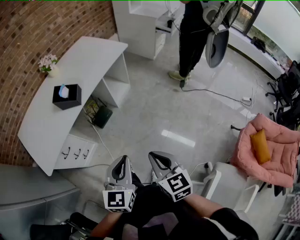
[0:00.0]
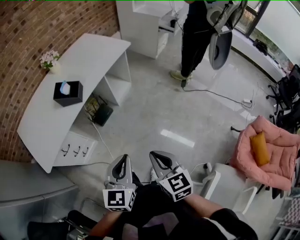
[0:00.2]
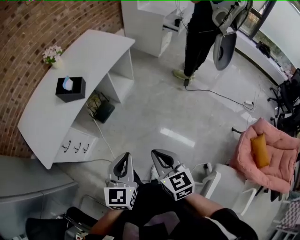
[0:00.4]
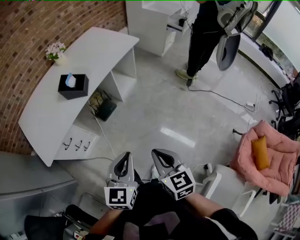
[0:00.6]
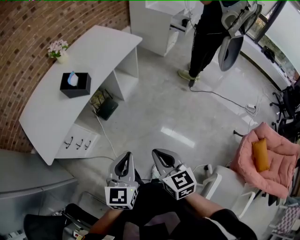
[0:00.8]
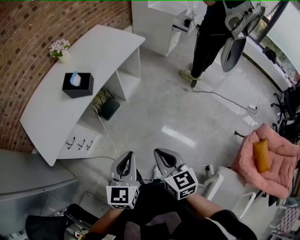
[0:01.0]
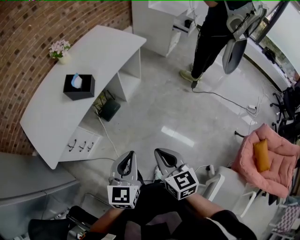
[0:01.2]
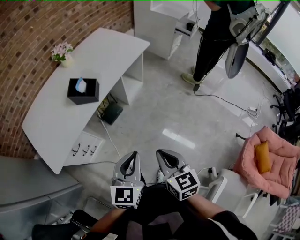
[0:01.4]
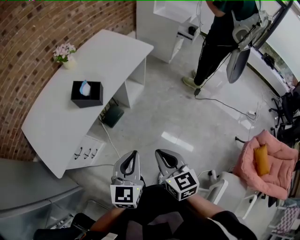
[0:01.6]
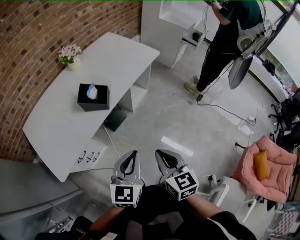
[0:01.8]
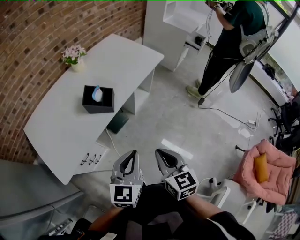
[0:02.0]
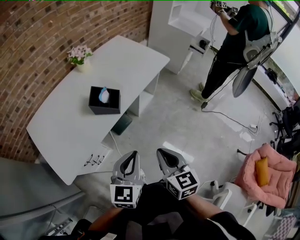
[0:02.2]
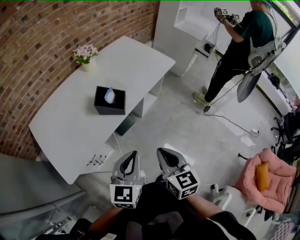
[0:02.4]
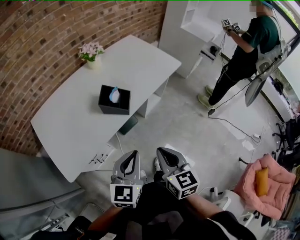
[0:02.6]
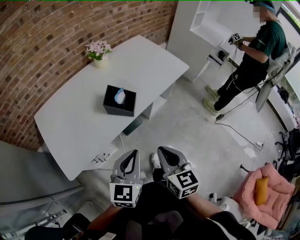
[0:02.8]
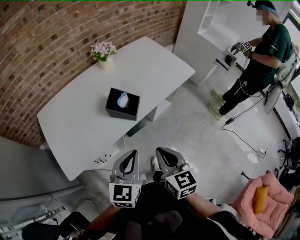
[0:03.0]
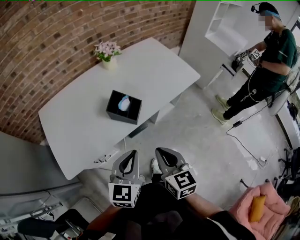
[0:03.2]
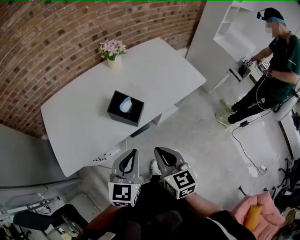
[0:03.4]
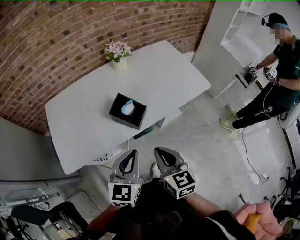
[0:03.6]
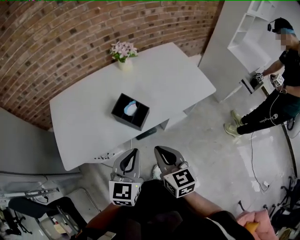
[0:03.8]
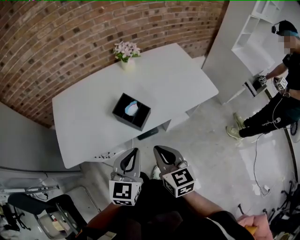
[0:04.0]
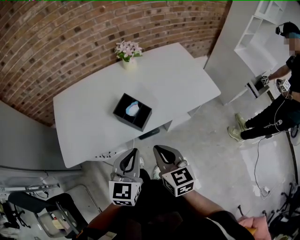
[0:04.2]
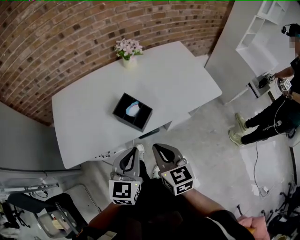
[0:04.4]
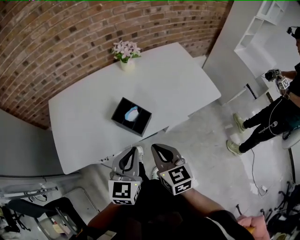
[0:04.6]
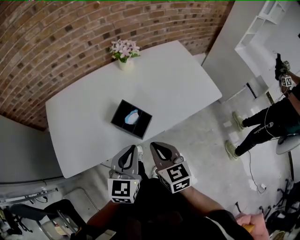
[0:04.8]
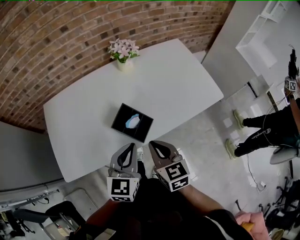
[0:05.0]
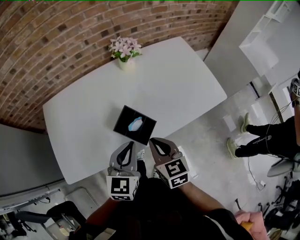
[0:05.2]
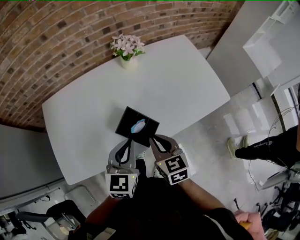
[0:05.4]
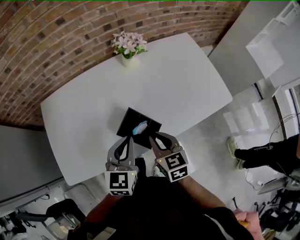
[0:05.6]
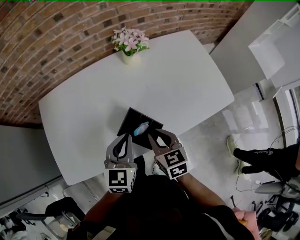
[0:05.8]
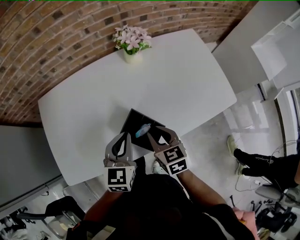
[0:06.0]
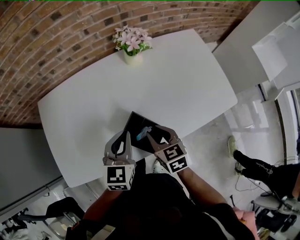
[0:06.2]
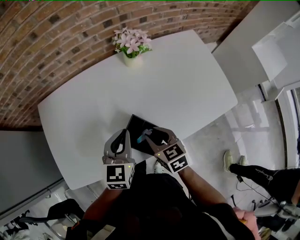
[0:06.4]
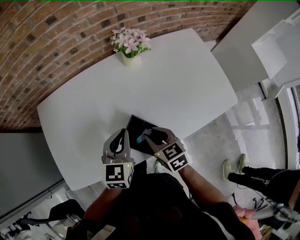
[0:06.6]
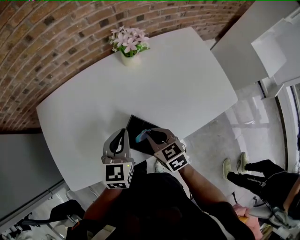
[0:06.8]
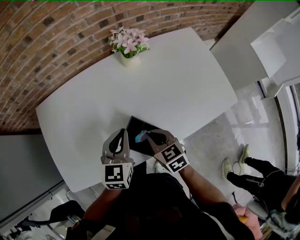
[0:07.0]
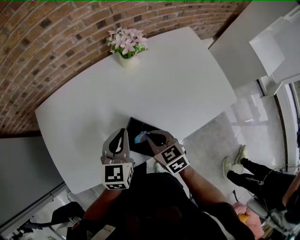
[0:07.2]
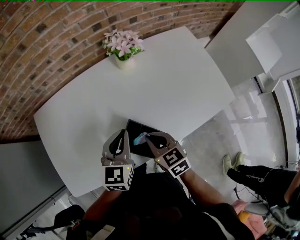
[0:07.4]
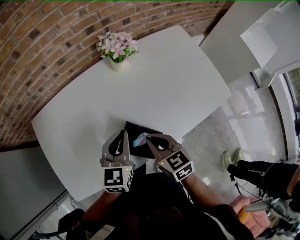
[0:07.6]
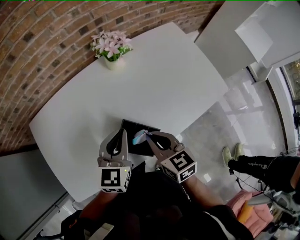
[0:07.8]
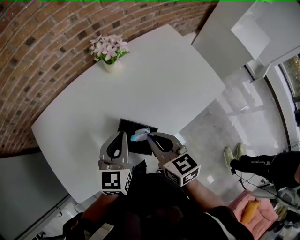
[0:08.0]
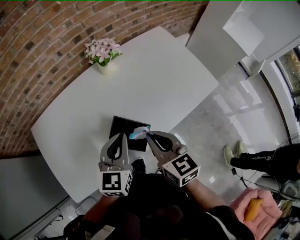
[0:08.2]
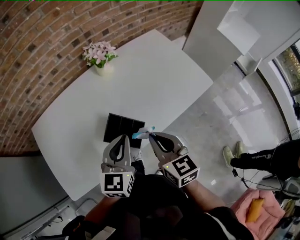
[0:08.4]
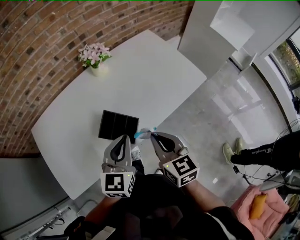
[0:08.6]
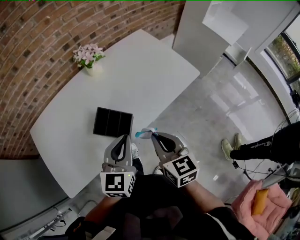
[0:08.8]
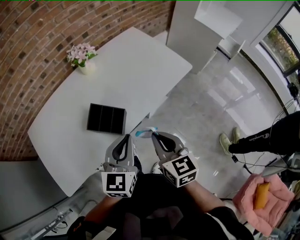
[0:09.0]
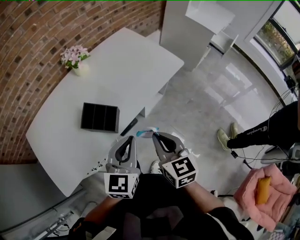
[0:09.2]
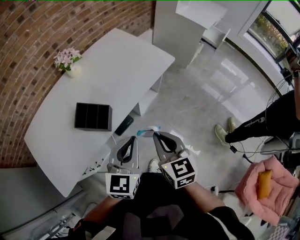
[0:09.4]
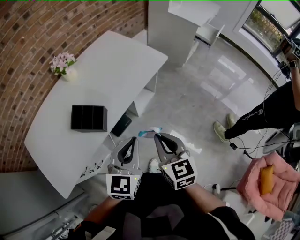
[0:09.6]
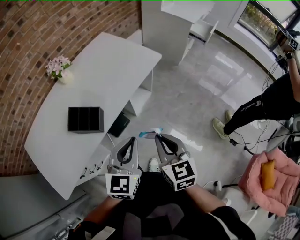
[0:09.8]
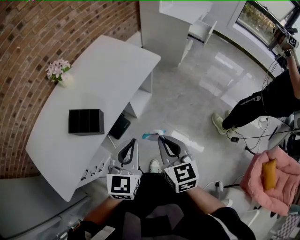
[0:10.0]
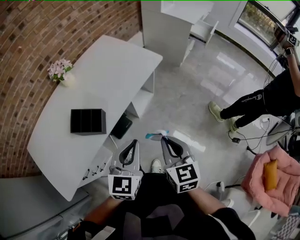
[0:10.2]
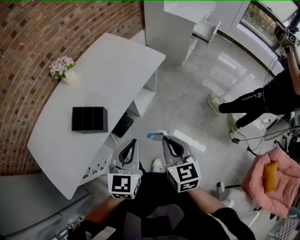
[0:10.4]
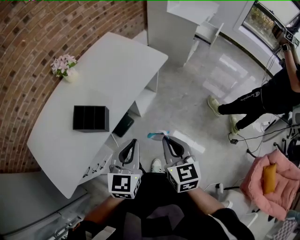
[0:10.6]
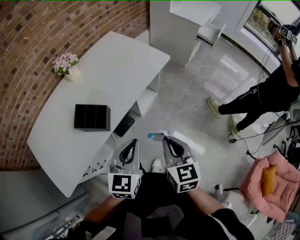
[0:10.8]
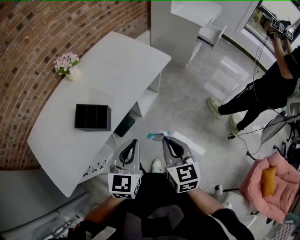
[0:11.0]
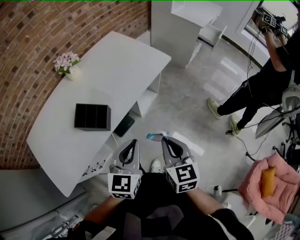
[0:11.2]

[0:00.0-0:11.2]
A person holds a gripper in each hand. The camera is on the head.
0.0 to 1.6 s: Both grippers move to the left and forward, approximately 15 cm.
1.6 to 3.2 s: Both grippers move forward and to the left, approximately 20 cm.
3.2 to 4.8 s: The grippers both shift forward by about 15 cm.
4.8 to 6.4 s: The right gripper goes some 20 cm forward and downward, and opens its fingers. The left gripper travels forward by about 20 cm.
6.4 to 8.0 s: The right gripper travels upward by some 10 cm, and closes up.
8.0 to 9.6 s: The right gripper changes place by some 30 cm, and swivels roughly 30 degrees; the left gripper moves approximately 35 cm, and rotates approximately 20 degrees.
9.6 to 11.2 s: The grippers move only a little.

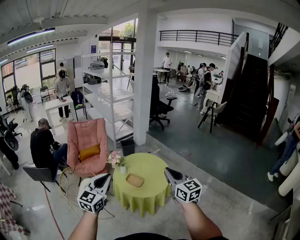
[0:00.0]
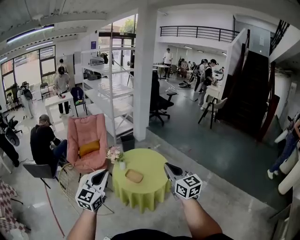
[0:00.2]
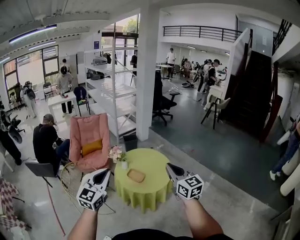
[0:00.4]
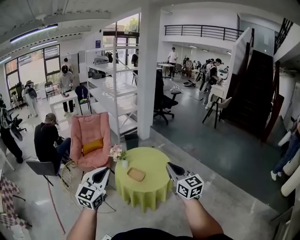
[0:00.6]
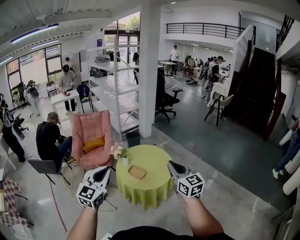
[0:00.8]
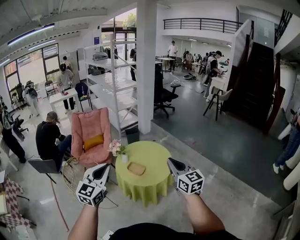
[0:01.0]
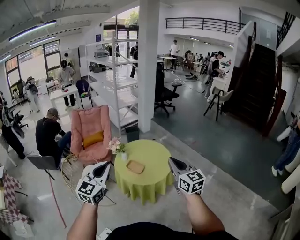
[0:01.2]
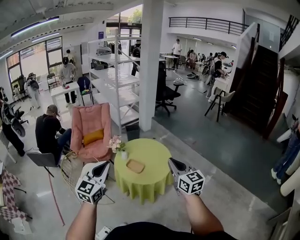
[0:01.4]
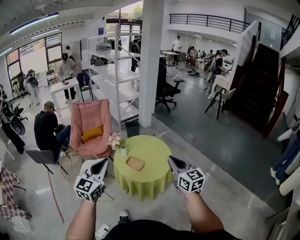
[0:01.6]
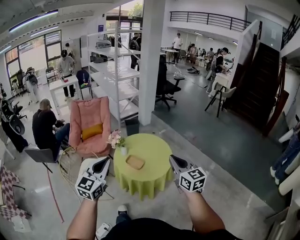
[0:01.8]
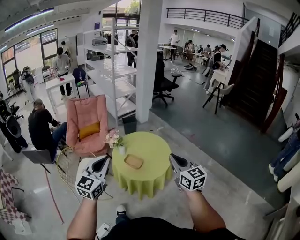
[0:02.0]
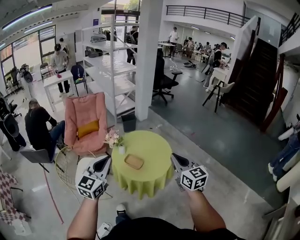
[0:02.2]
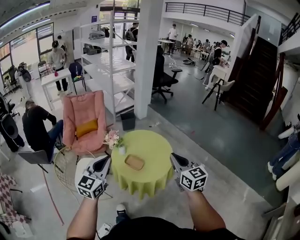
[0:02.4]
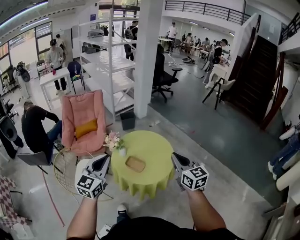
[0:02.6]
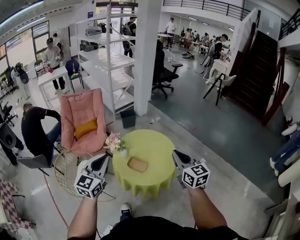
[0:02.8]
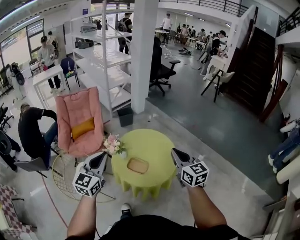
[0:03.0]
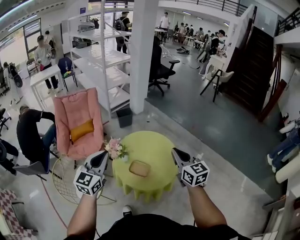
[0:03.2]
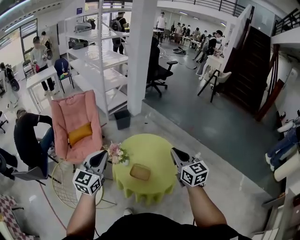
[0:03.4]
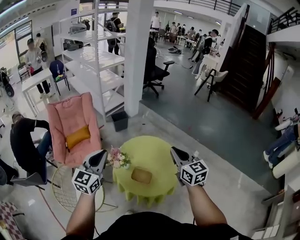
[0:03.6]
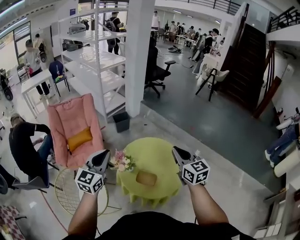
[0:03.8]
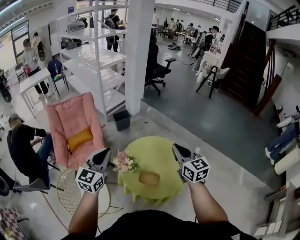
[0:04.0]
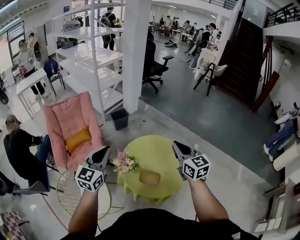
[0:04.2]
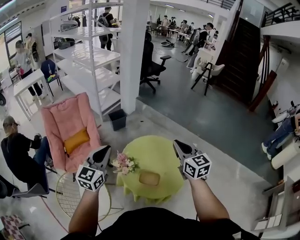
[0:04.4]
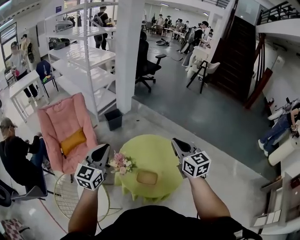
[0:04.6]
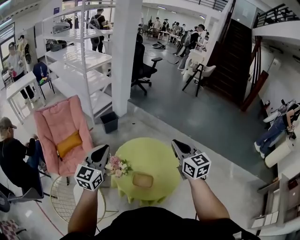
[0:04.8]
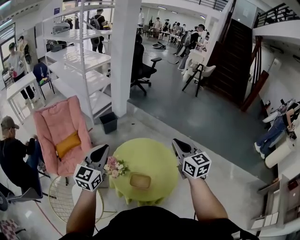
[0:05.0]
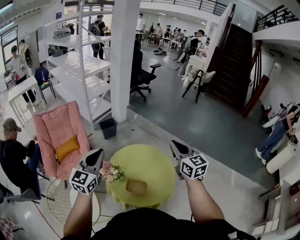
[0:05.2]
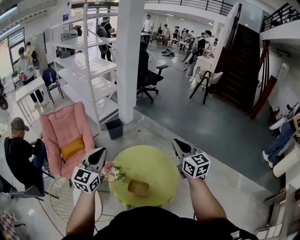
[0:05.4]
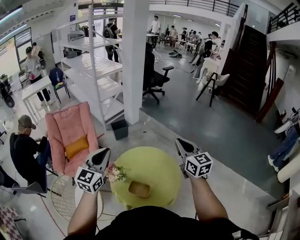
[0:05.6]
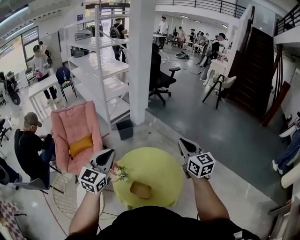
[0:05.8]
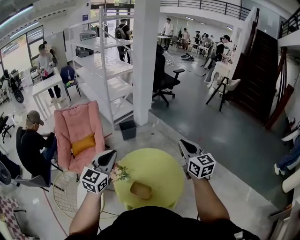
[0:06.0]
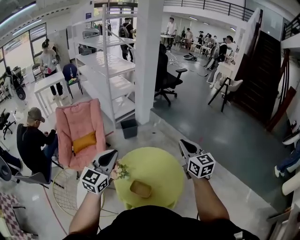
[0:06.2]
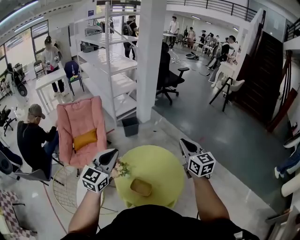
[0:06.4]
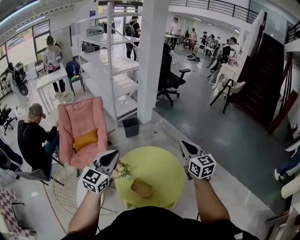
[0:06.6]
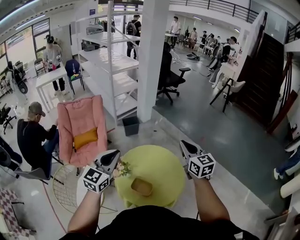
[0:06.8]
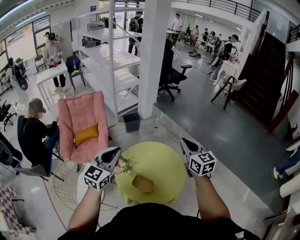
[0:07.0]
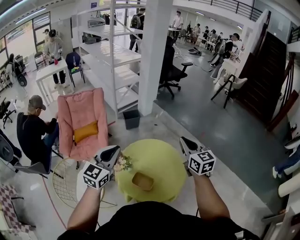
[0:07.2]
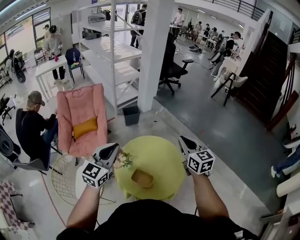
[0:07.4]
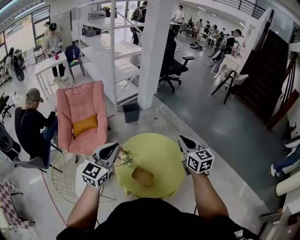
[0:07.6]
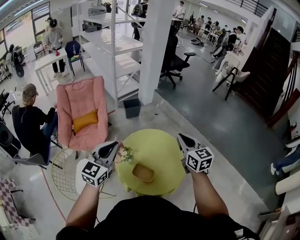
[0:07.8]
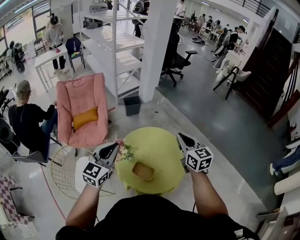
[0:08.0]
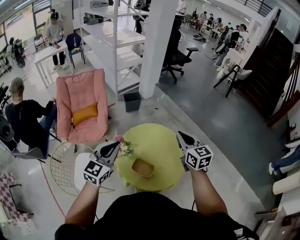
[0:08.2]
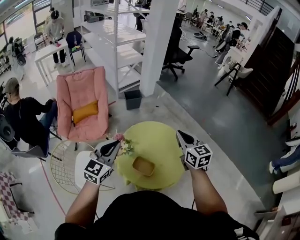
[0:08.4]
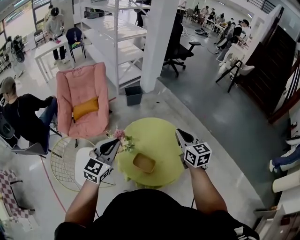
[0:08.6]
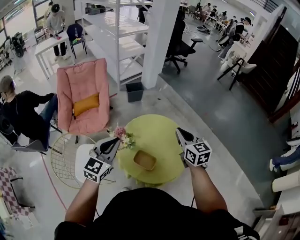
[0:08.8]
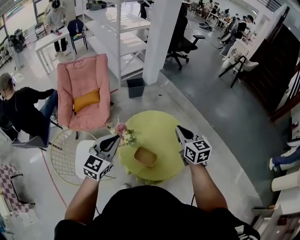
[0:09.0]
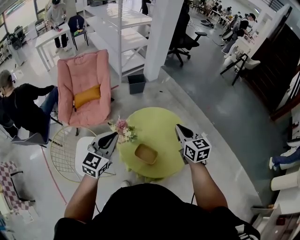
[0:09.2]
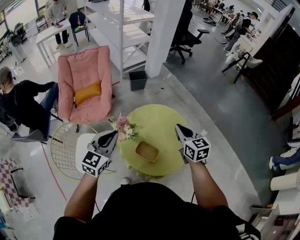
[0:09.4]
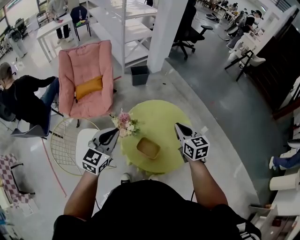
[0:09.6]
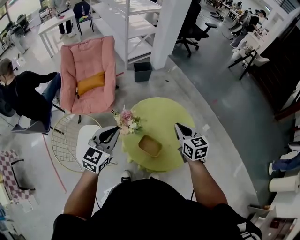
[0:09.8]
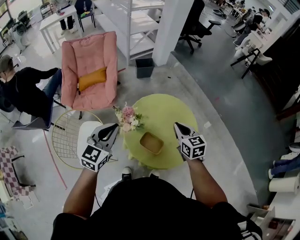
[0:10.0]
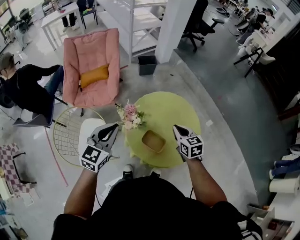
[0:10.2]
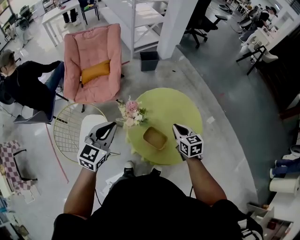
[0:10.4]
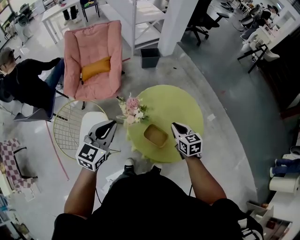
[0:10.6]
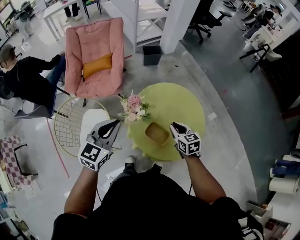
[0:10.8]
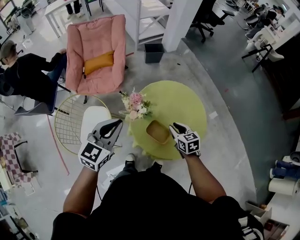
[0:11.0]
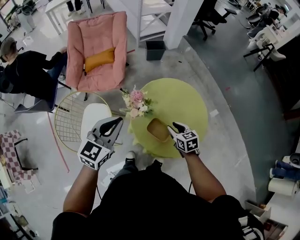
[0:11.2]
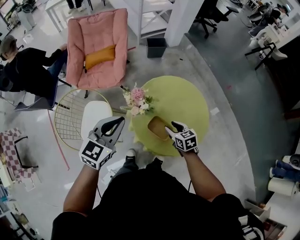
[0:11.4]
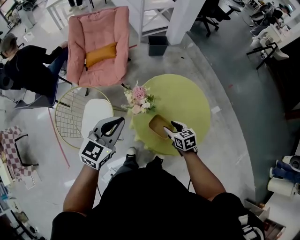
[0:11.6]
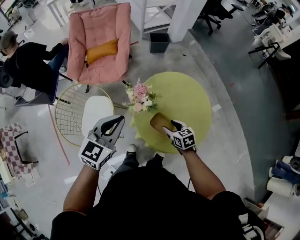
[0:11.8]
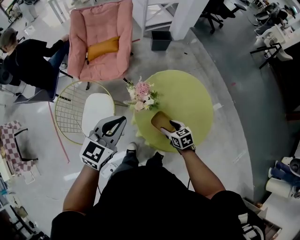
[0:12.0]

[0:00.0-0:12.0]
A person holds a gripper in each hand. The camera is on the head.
0.0 to 1.6 s: The right gripper shifts roughly 5 cm to the right.
1.6 to 3.0 s: The grippers both shift forward by some 20 cm.
3.0 to 4.4 s: The grippers both shift forward and to the left by roughly 20 cm.
4.4 to 6.0 s: The left gripper moves to the right, roughly 10 cm. The right gripper travels to the right and forward by approximately 15 cm.
6.0 to 7.6 s: The left gripper changes place by roughly 5 cm, while the right gripper heads downward, covering roughly 5 cm.
7.6 to 9.0 s: Both grippers travel together downward, approximately 5 cm.
9.0 to 10.4 s: The left gripper moves downward and to the left, about 10 cm, while the right gripper moves downward, about 15 cm.
10.4 to 12.0 s: The right gripper travels downward and to the left by roughly 15 cm, rotates roughly 20 degrees, and opens up.

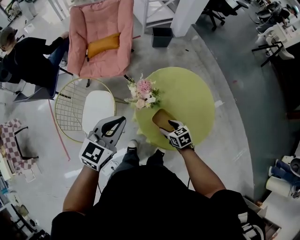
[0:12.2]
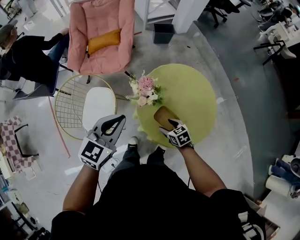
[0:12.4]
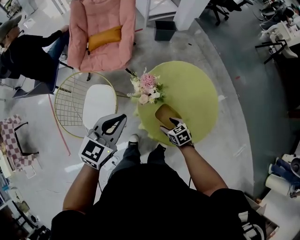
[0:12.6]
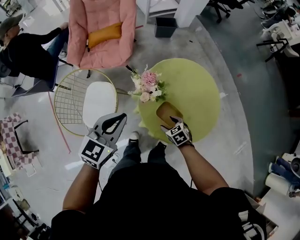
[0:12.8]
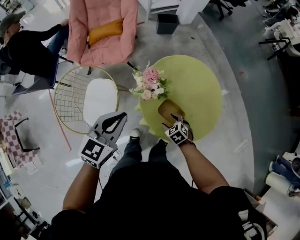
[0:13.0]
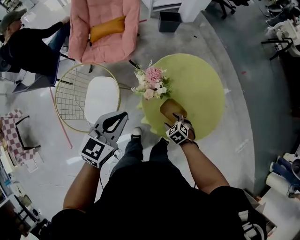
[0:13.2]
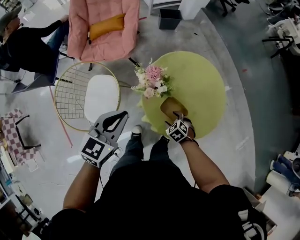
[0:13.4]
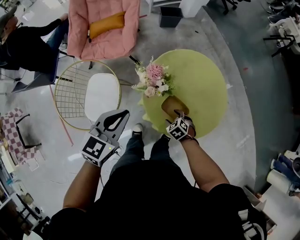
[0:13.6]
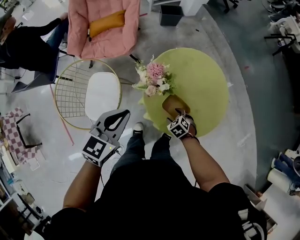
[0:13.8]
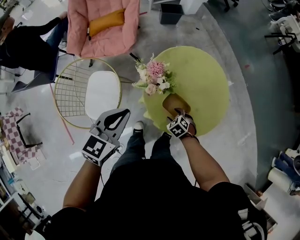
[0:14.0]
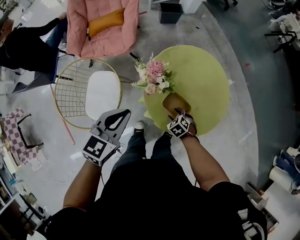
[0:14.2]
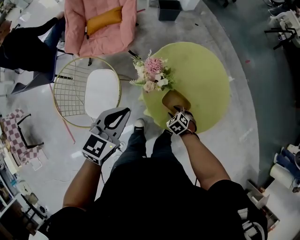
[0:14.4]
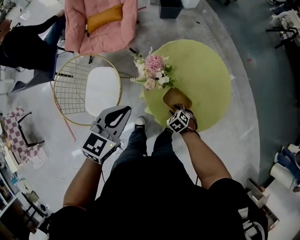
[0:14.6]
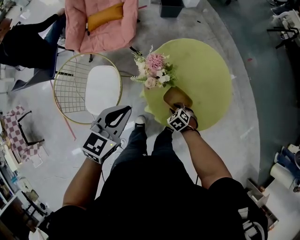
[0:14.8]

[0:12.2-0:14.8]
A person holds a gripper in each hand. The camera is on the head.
12.2 to 13.4 s: The left gripper changes place by roughly 5 cm. Meanwhile the right gripper heads downward, covering about 10 cm, and rotates roughly 30 degrees.
13.4 to 14.8 s: The right gripper closes.
